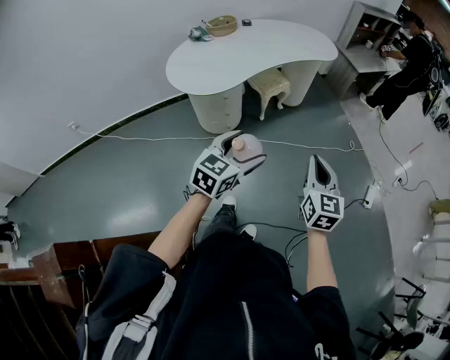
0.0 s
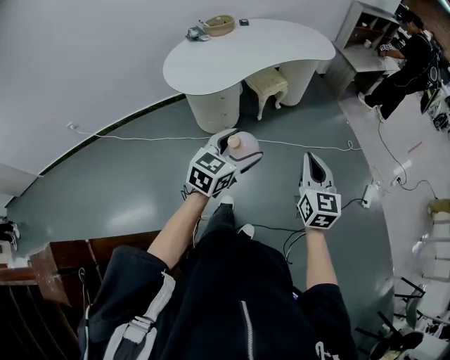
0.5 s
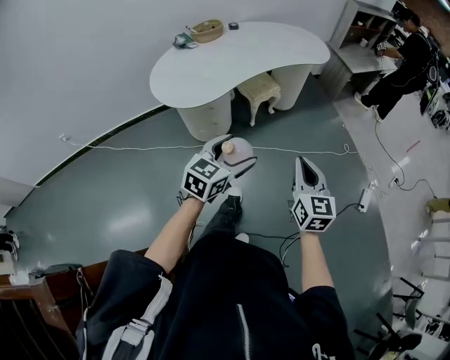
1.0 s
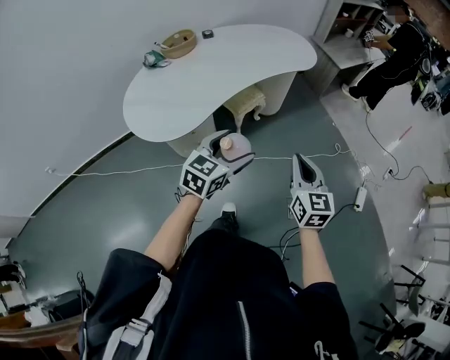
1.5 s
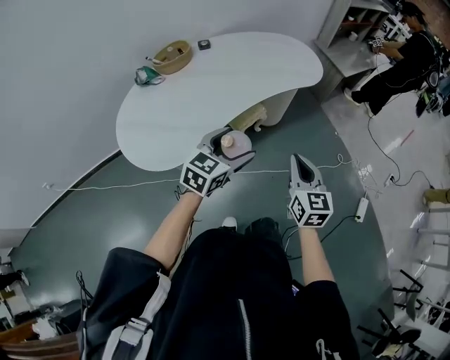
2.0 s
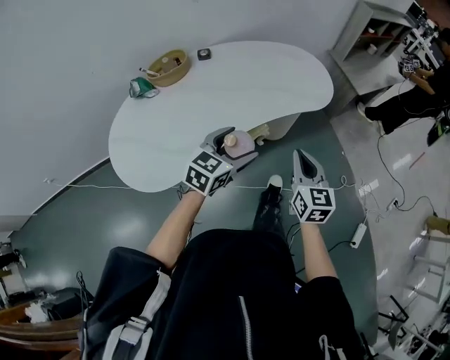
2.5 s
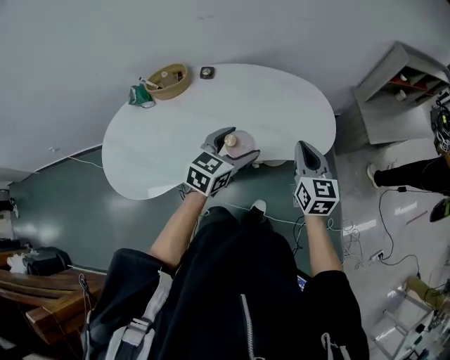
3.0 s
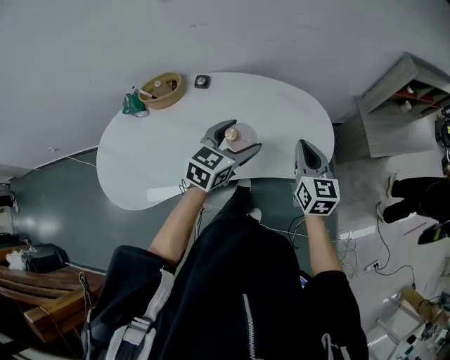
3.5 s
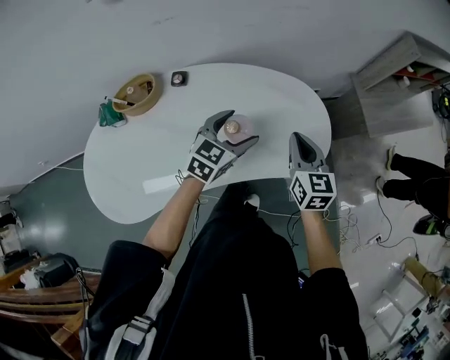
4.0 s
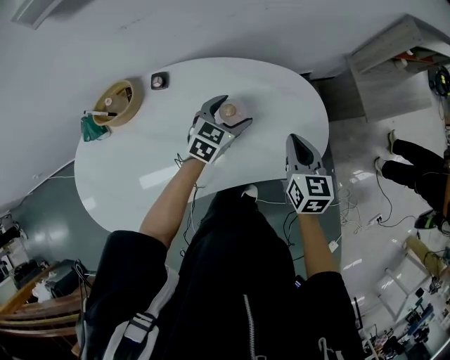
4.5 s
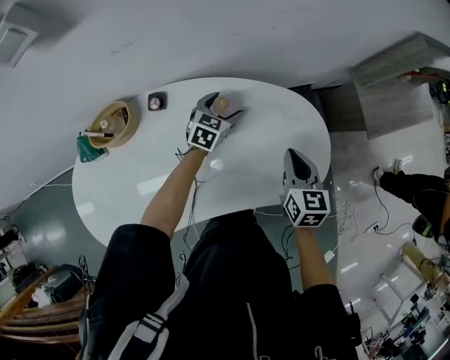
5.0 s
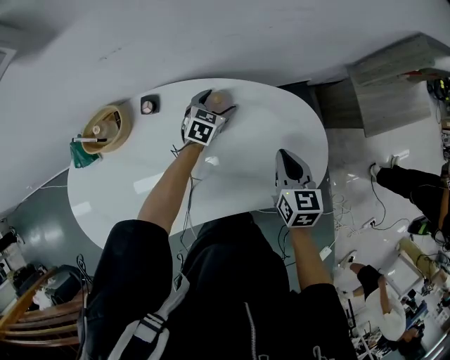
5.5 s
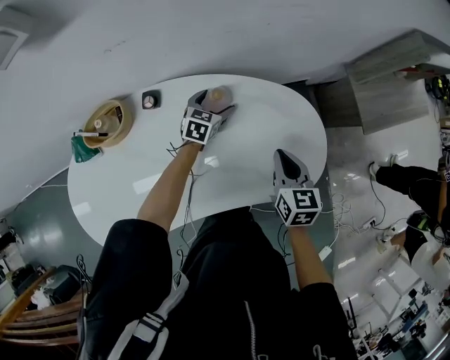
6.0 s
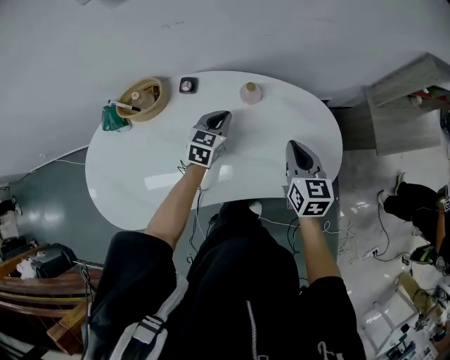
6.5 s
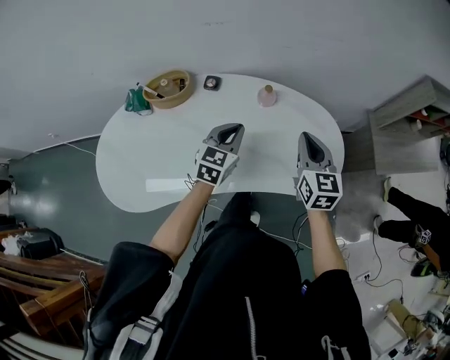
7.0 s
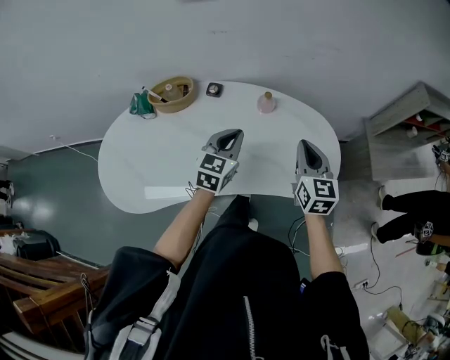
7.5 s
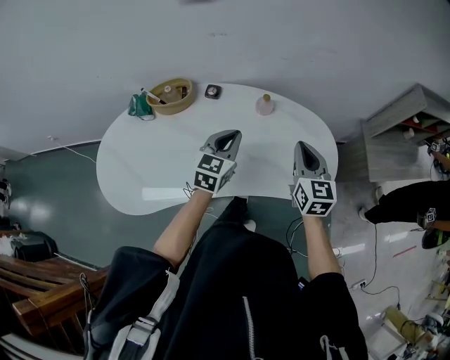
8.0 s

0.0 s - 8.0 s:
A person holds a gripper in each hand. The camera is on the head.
0.0 s - 2.0 s: Both grippers travel together forward, about 40 cm.
2.0 s - 4.0 s: Both grippers are carried forward, some 60 cm.
4.0 s - 6.0 s: The right gripper goes some 10 cm downward and forward. The left gripper goes some 30 cm forward, downward and to the left.
6.0 s - 8.0 s: The left gripper is displaced backward and upward by approximately 30 cm, rotates approximately 20 degrees, and closes up. Meanwhile the right gripper travels upward and backward by approximately 15 cm, and changes its angle by roughly 20 degrees.

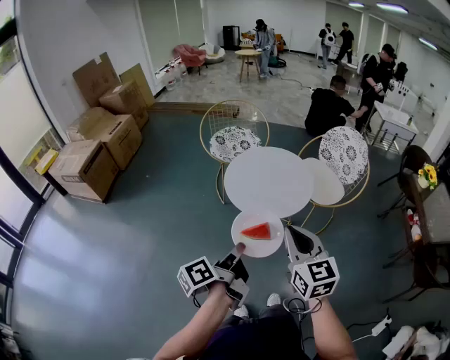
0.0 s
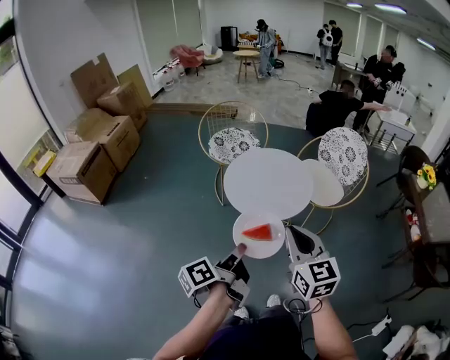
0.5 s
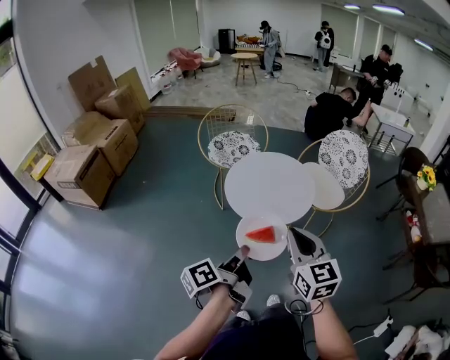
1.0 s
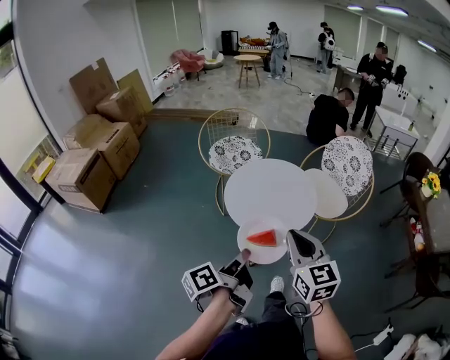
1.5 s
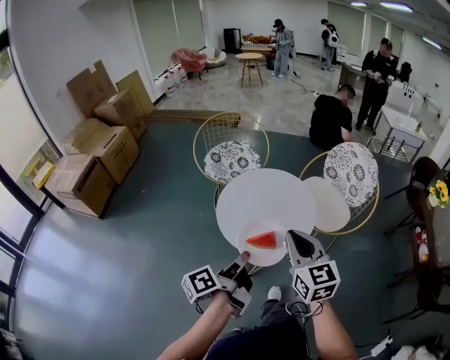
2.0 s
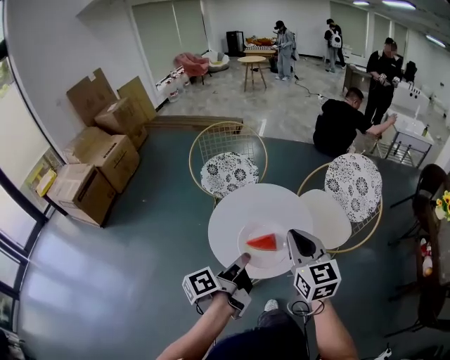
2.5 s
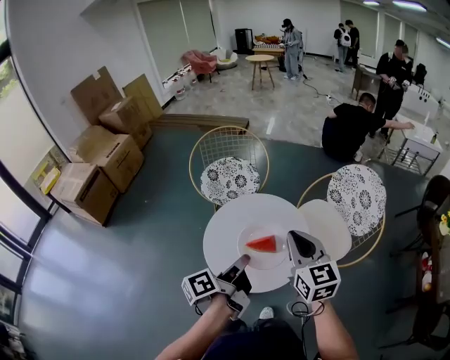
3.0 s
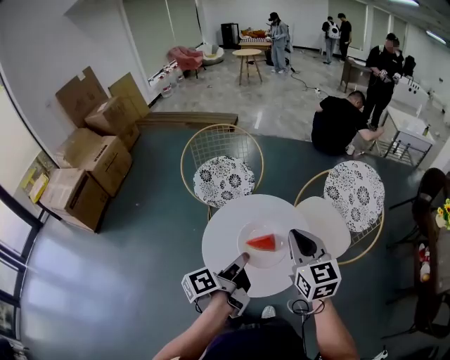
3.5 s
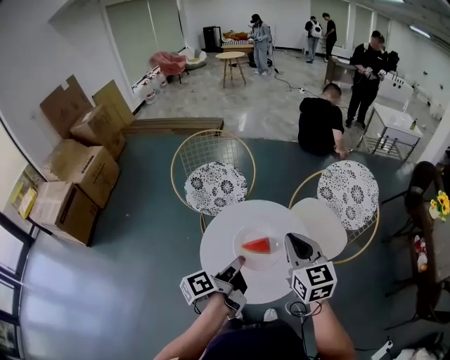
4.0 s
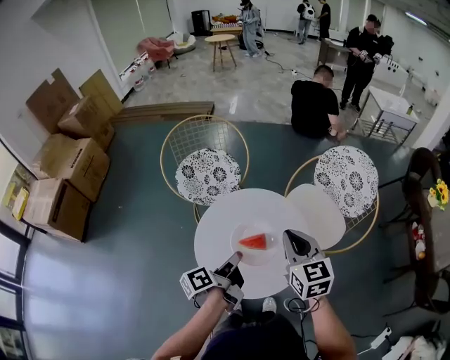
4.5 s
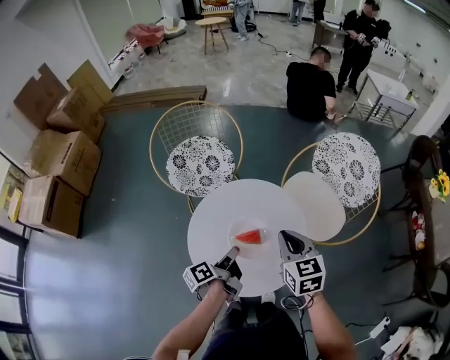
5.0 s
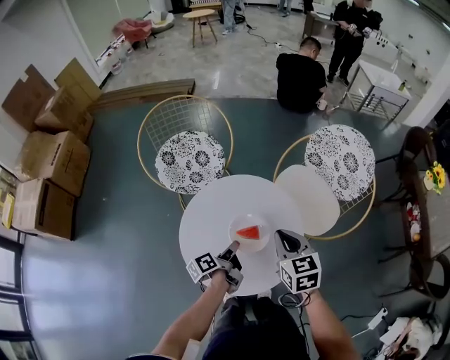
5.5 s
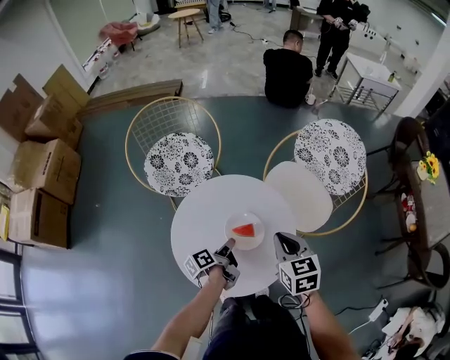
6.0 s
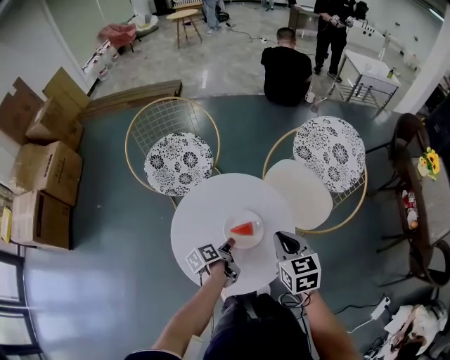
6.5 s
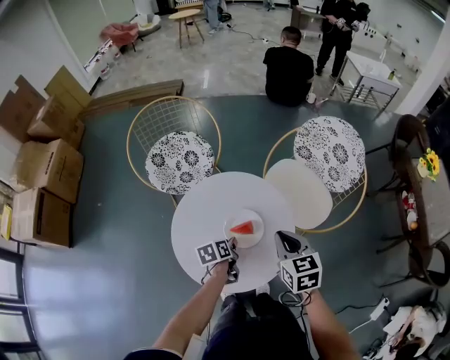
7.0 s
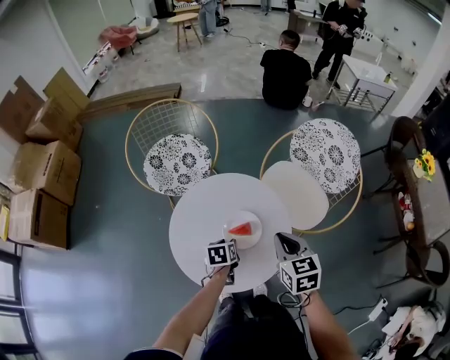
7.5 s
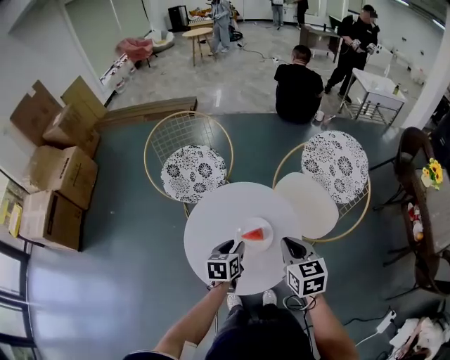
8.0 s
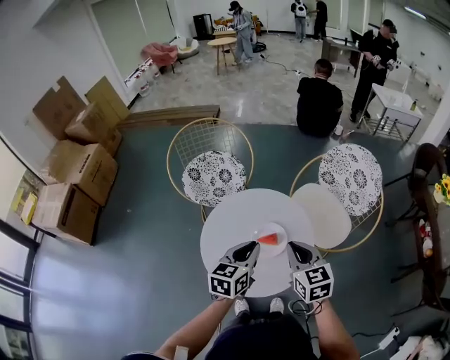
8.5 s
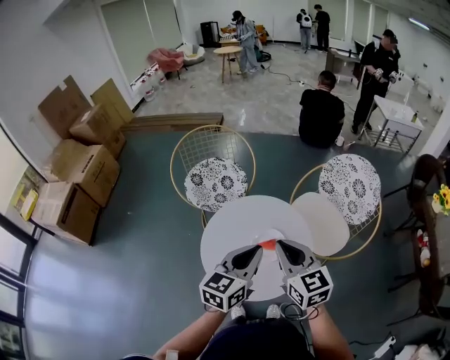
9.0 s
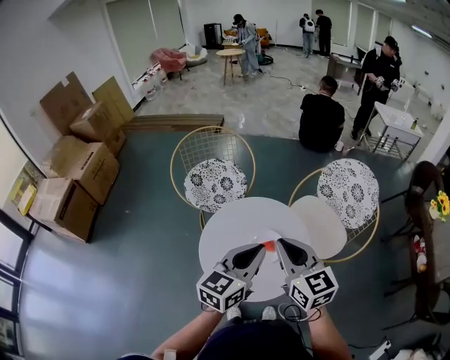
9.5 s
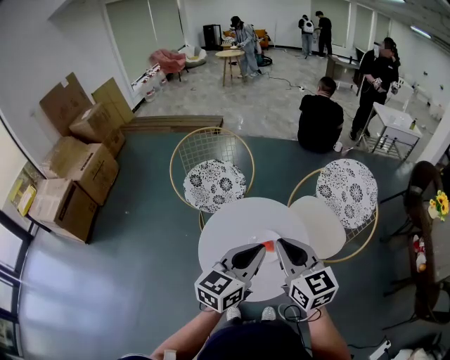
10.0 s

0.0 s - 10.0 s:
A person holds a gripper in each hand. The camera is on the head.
0.0 s - 2.0 s: Both grippers move forward, about 15 cm.
2.0 s - 4.0 s: The grippers both shift forward by some 20 cm.
4.0 s - 6.0 s: The right gripper shifts about 15 cm downward, and changes its angle by roughly 20 degrees; the left gripper heads downward, covering some 20 cm.
6.0 s - 8.0 s: The left gripper moves upward, some 5 cm, twists some 60 degrees clockwise, seen from behind, and opens.
8.0 s - 10.0 s: The left gripper shifts about 25 cm upward, points its fingers about 30 degrees further upward, and closes its fingers, while the right gripper is displaced upward and to the left by approximately 15 cm, and turns by about 30 degrees.

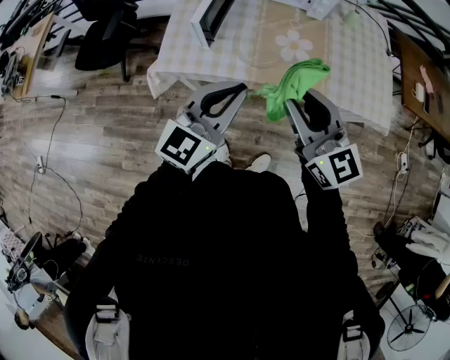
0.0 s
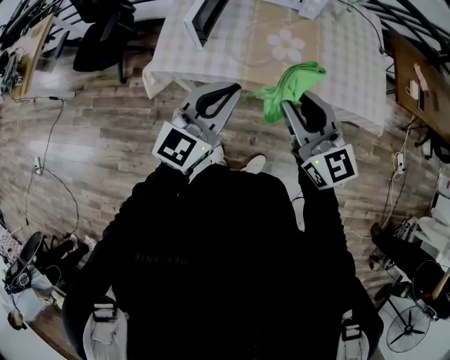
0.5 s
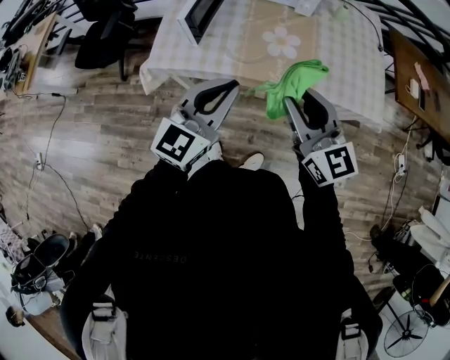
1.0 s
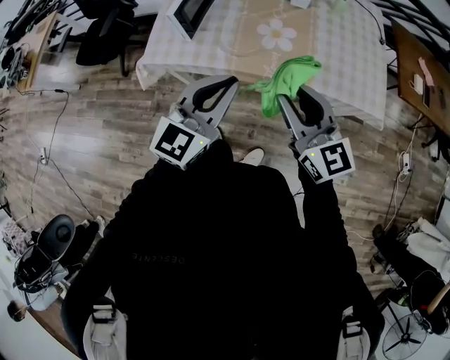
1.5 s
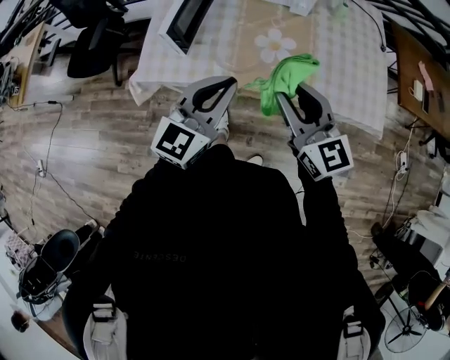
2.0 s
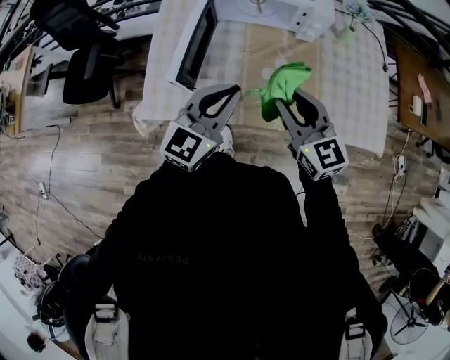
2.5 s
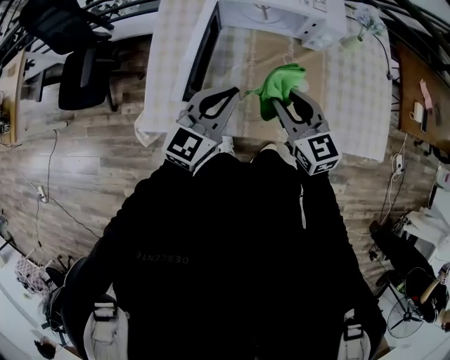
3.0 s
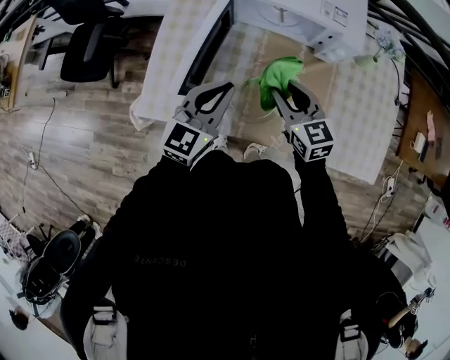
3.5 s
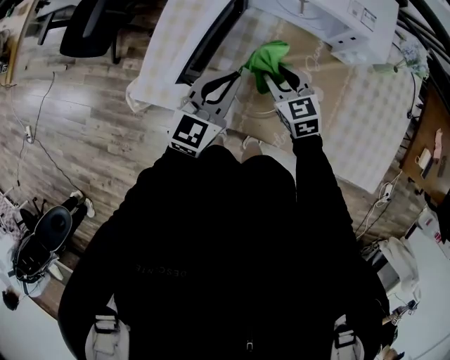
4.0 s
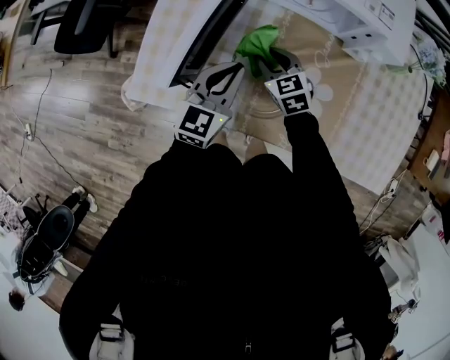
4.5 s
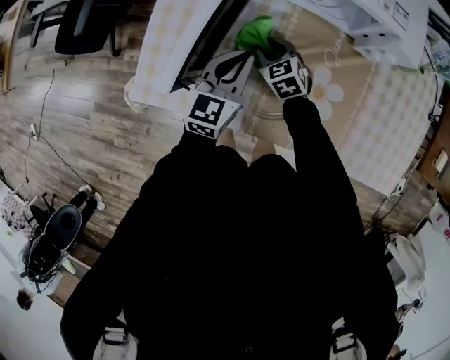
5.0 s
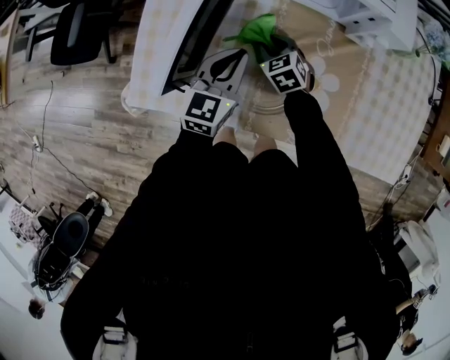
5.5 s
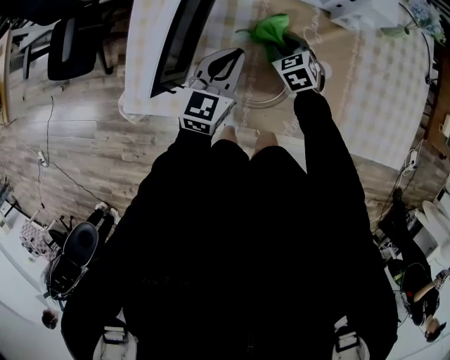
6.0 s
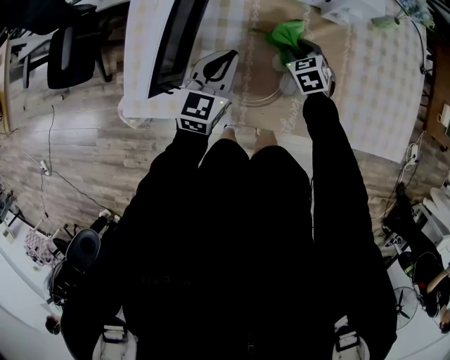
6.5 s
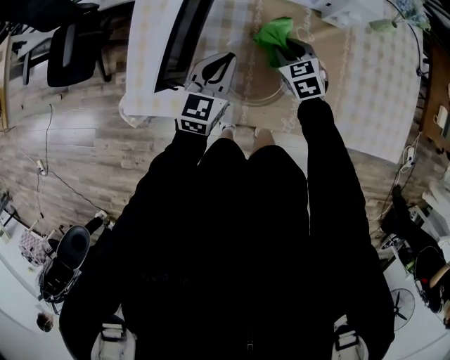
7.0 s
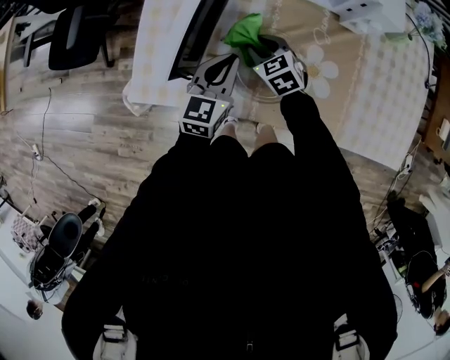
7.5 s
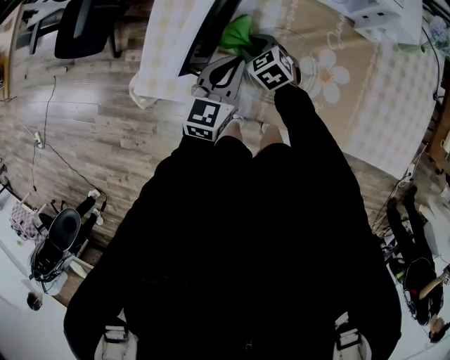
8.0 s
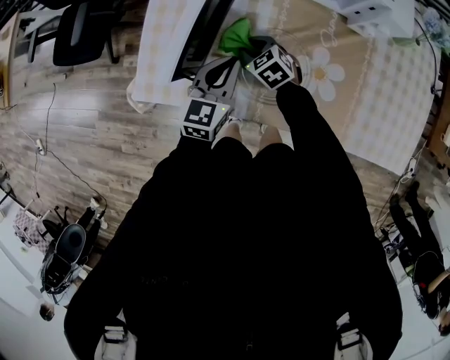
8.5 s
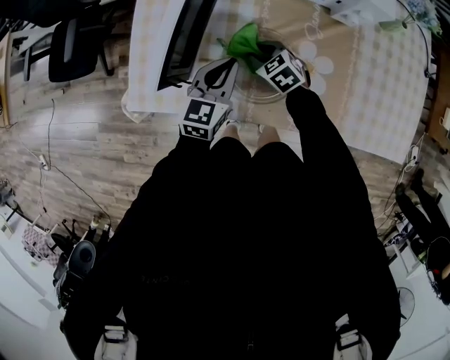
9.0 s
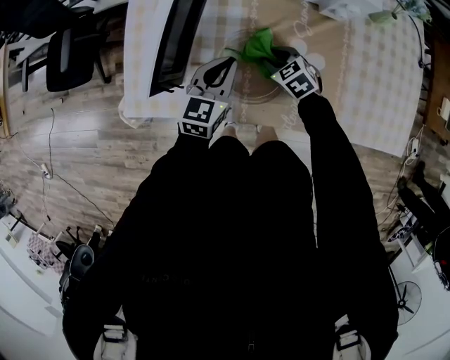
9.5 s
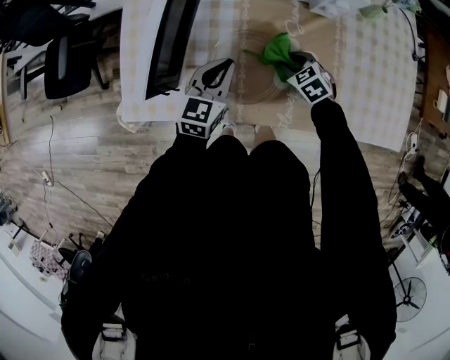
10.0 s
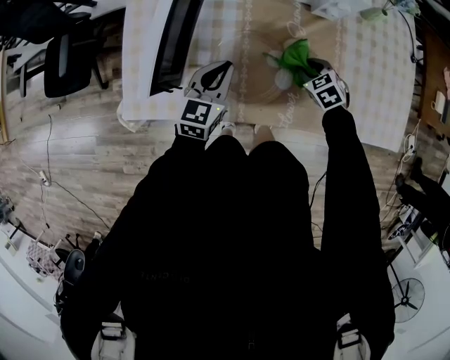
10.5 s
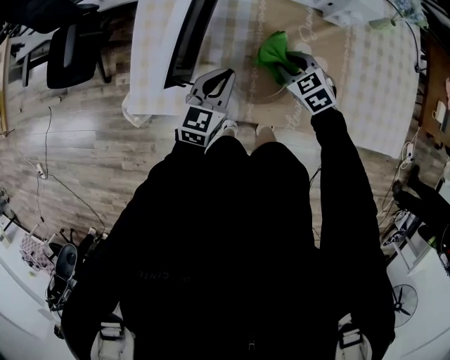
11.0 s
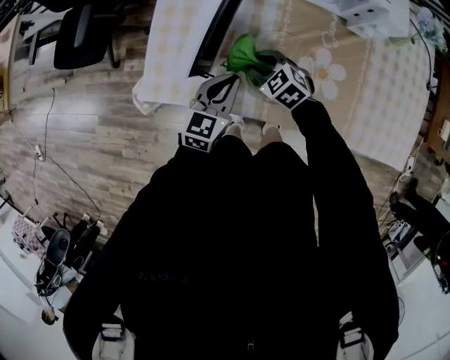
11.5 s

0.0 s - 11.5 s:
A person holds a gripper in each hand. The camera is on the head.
0.0 s - 2.0 s: The grippers both shift to the right and forward by about 10 cm.
2.0 s - 4.0 s: The grippers both shift forward and downward by approximately 35 cm. The right gripper swivels approximately 30 degrees.
4.0 s - 6.0 s: The left gripper goes some 10 cm downward. Meanwhile the right gripper heads downward and to the right, covering about 15 cm, and swivels approximately 20 degrees.
6.0 s - 7.5 s: The left gripper changes place by some 5 cm; the right gripper is displaced to the left by about 10 cm.
7.5 s - 9.5 s: The right gripper shifts approximately 10 cm to the right.
9.5 s - 11.5 s: The right gripper goes about 15 cm to the left; the left gripper is displaced to the left and backward by roughly 10 cm.
